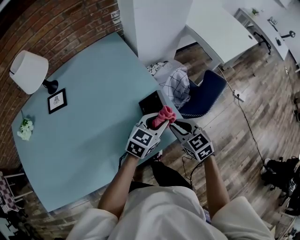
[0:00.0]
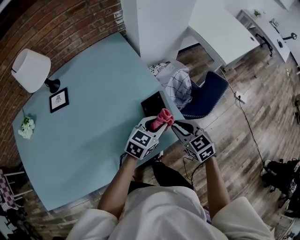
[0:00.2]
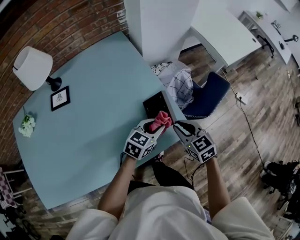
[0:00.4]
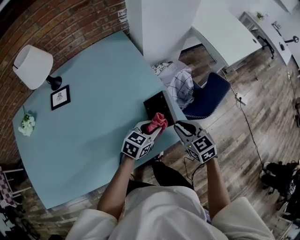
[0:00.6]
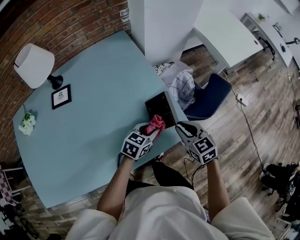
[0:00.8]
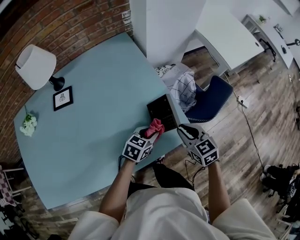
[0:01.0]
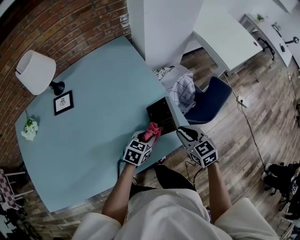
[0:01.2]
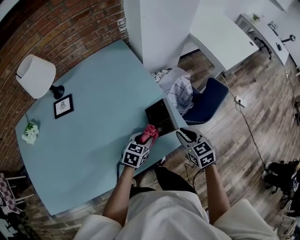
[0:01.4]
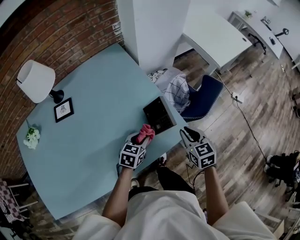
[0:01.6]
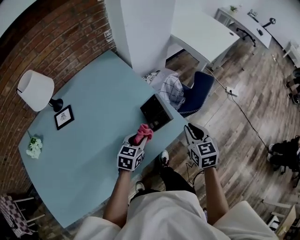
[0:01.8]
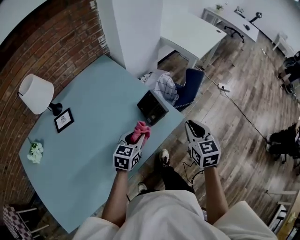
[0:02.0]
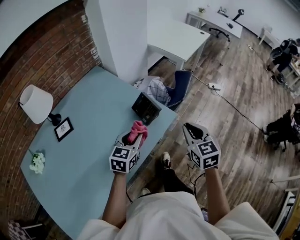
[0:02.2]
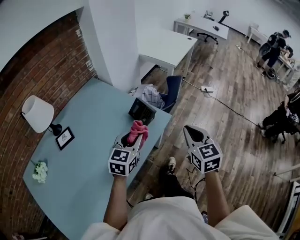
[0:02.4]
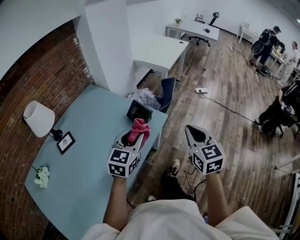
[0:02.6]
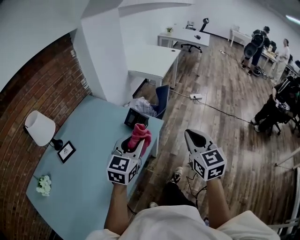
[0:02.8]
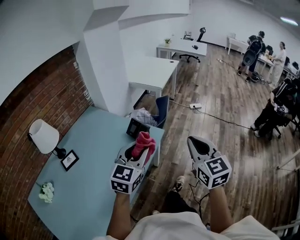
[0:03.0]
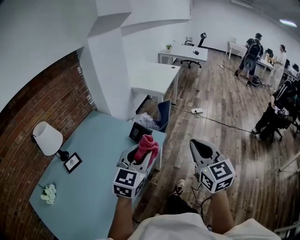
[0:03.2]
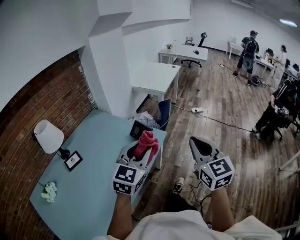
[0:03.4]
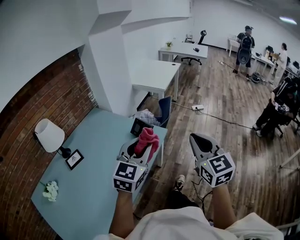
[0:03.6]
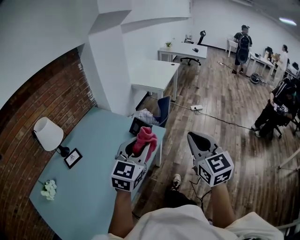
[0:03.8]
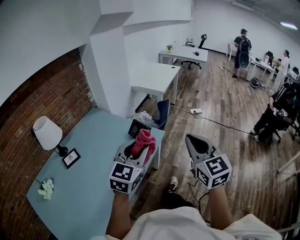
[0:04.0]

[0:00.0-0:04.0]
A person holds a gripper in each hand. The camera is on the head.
0:00.0 to 0:01.4: The left gripper travels to the left and downward by approximately 15 cm.
0:01.4 to 0:02.6: The left gripper travels upward by some 25 cm, and changes its angle by roughly 40 degrees, while the right gripper shifts by approximately 35 cm, turns by approximately 50 degrees, and closes.
0:02.6 to 0:04.0: Both grippers travel together upward and backward, approximately 15 cm.

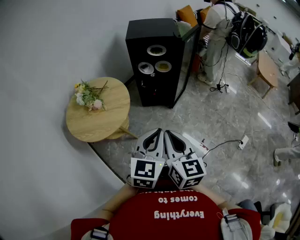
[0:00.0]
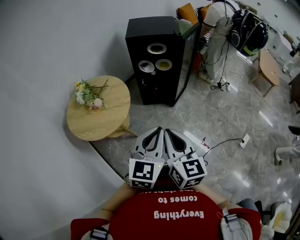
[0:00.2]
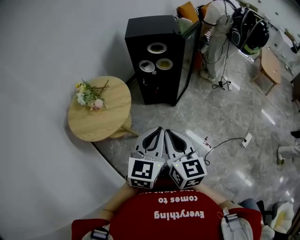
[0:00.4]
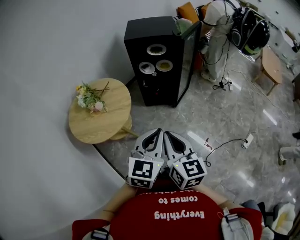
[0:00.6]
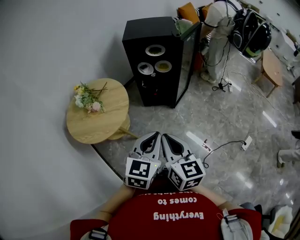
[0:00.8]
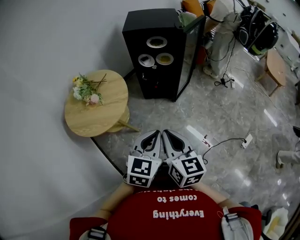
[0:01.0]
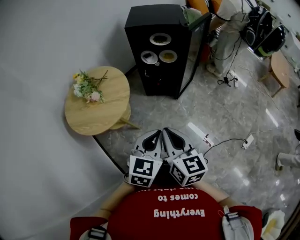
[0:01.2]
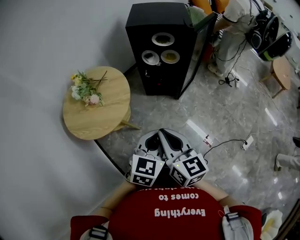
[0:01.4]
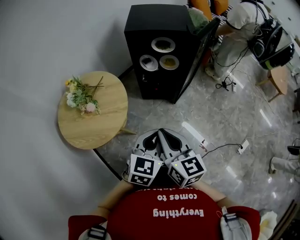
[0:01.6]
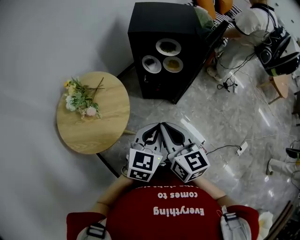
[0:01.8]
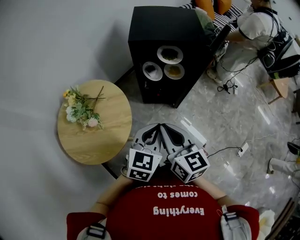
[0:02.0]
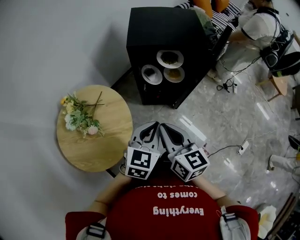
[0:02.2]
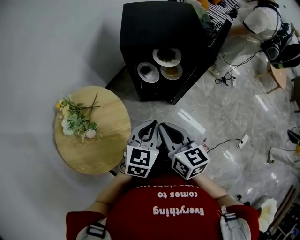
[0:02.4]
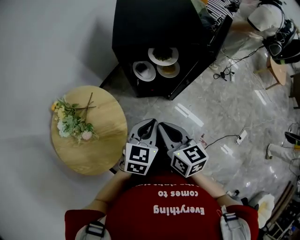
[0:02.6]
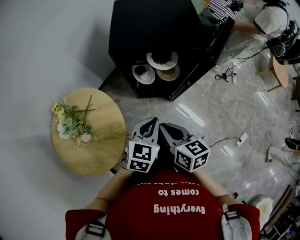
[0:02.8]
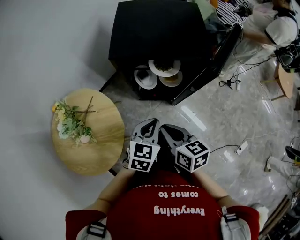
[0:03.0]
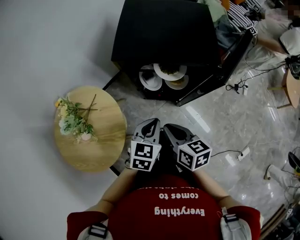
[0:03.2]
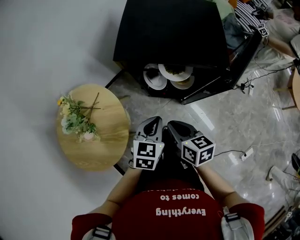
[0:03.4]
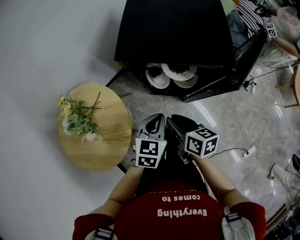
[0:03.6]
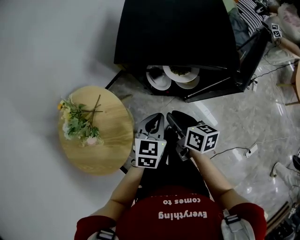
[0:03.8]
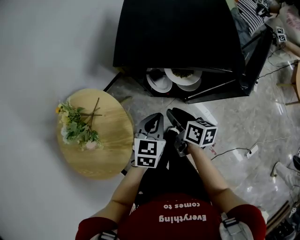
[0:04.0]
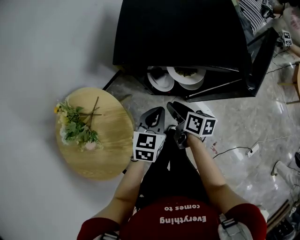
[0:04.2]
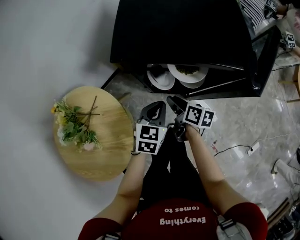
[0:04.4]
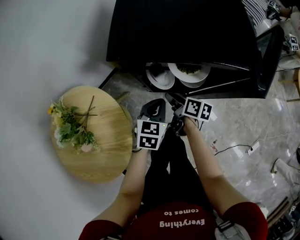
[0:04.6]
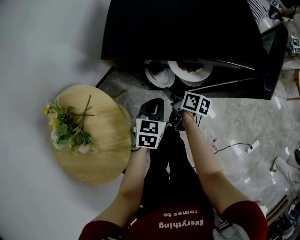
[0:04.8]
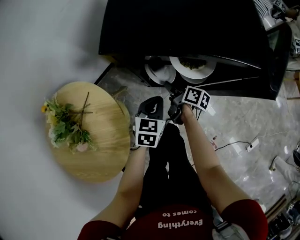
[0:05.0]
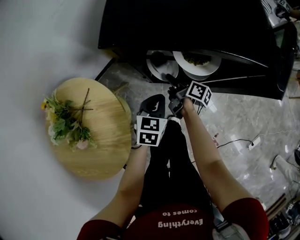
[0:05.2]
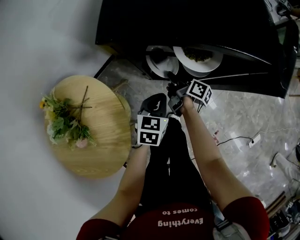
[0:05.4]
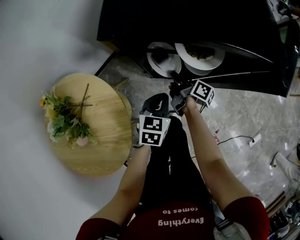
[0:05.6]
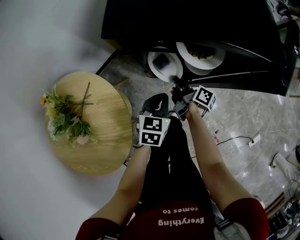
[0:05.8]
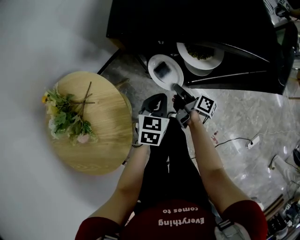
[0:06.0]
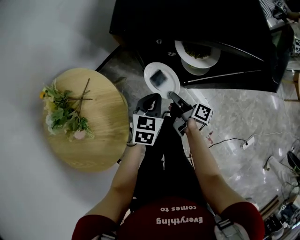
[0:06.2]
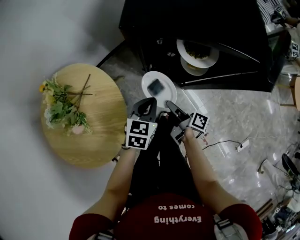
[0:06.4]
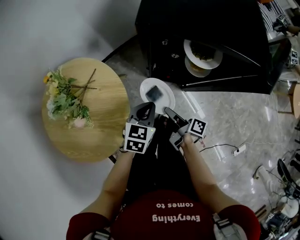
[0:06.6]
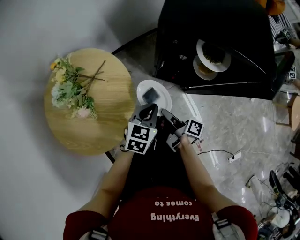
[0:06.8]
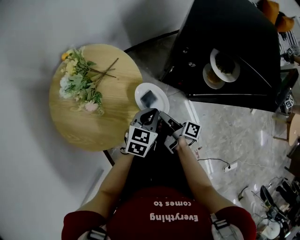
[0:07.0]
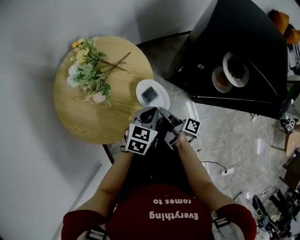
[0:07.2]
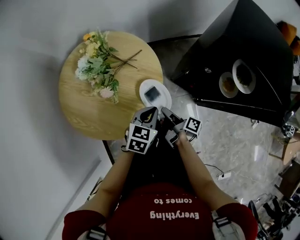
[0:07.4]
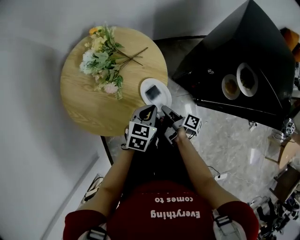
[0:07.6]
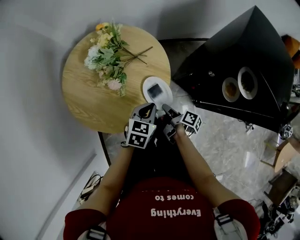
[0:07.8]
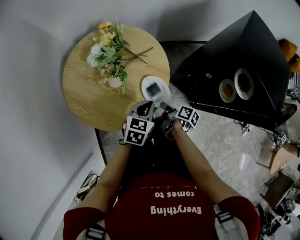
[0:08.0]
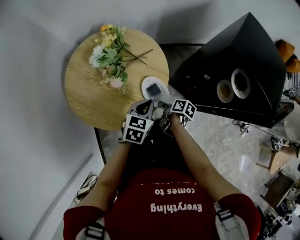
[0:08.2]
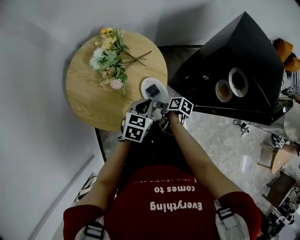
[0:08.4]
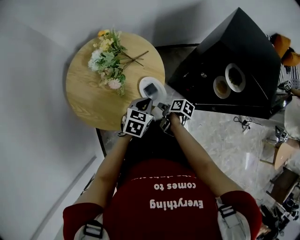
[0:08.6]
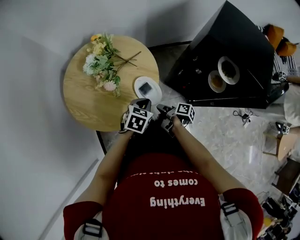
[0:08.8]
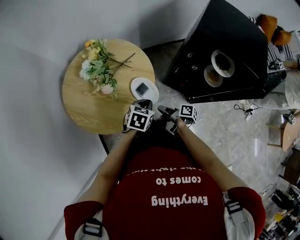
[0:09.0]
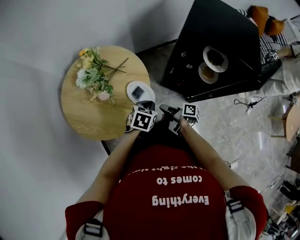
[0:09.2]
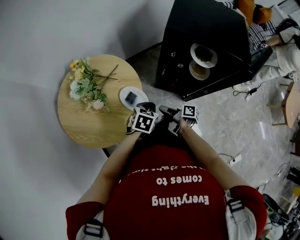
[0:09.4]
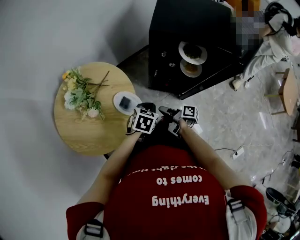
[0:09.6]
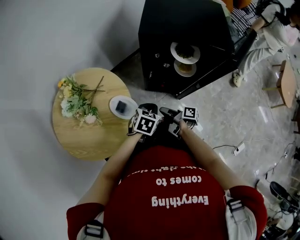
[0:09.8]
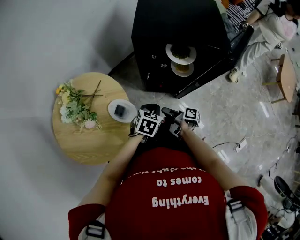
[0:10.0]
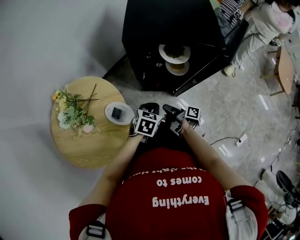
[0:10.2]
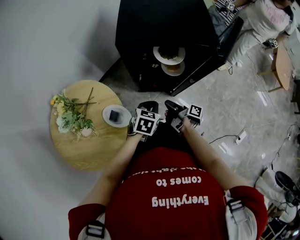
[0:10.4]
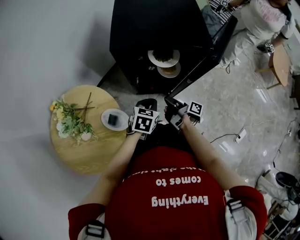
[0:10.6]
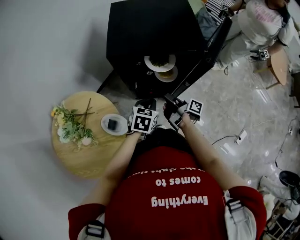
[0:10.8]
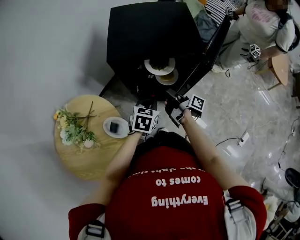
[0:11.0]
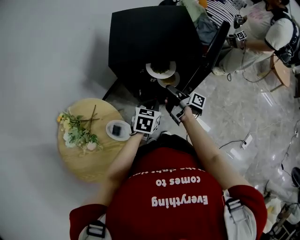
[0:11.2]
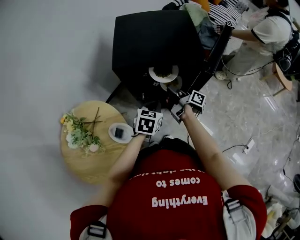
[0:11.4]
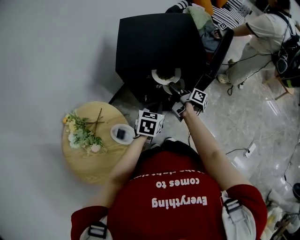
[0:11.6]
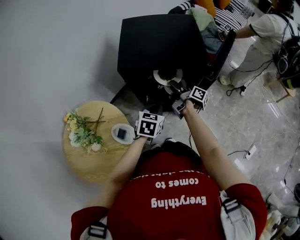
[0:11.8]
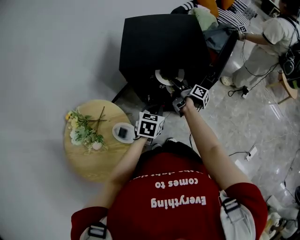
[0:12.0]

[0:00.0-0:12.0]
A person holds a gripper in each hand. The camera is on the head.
0:00.0 to 0:01.6: The left gripper moves approximately 15 cm.
0:01.6 to 0:03.0: The left gripper ends up about 30 cm from where it was.
0:03.0 to 0:04.4: The left gripper ends up about 15 cm from where it was.
0:04.4 to 0:06.0: The left gripper travels downward by roughly 10 cm.
0:06.0 to 0:07.6: The left gripper moves approximately 25 cm, and changes its angle by some 20 degrees.
0:09.0 to 0:10.4: The left gripper shifts by some 20 cm, and changes its angle by approximately 30 degrees.
0:10.4 to 0:12.0: The left gripper goes some 5 cm upward.

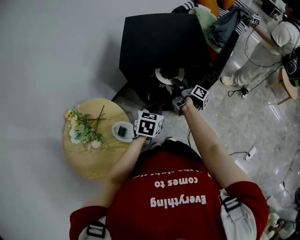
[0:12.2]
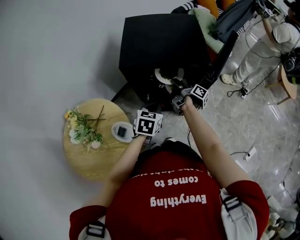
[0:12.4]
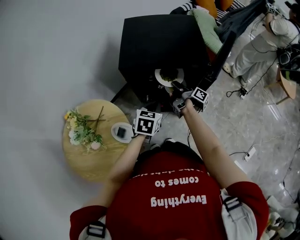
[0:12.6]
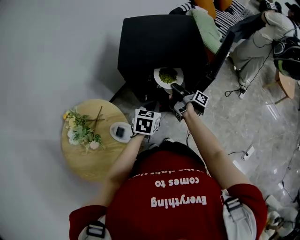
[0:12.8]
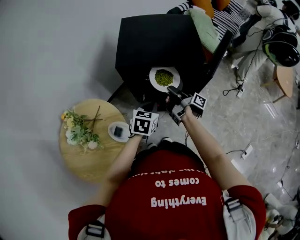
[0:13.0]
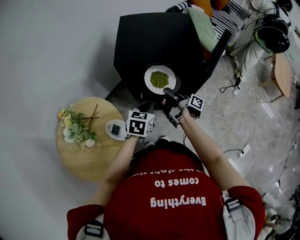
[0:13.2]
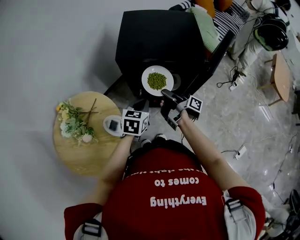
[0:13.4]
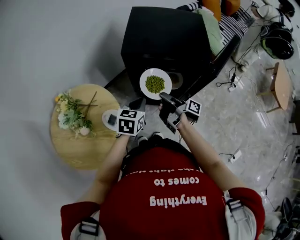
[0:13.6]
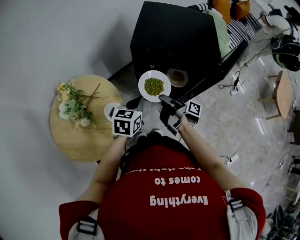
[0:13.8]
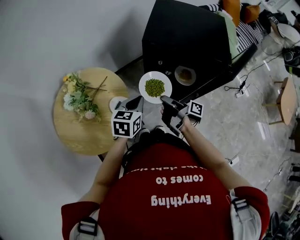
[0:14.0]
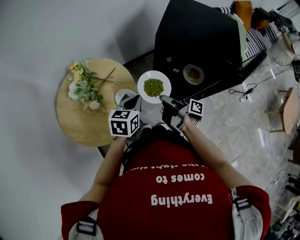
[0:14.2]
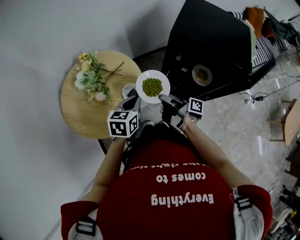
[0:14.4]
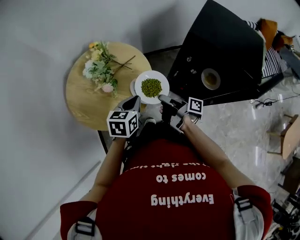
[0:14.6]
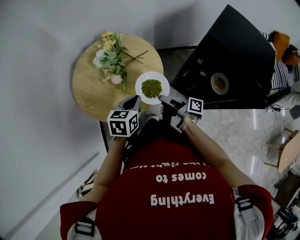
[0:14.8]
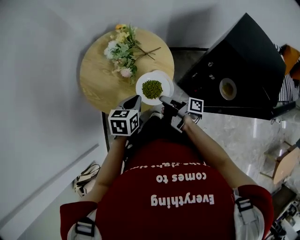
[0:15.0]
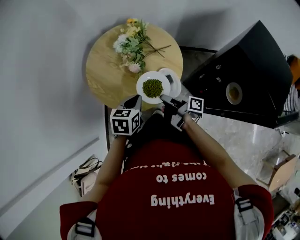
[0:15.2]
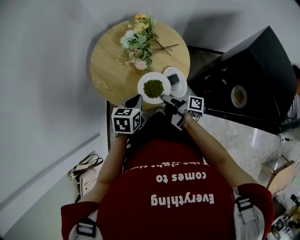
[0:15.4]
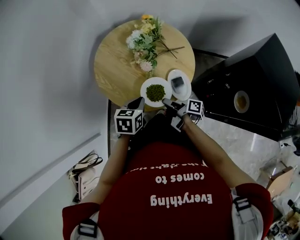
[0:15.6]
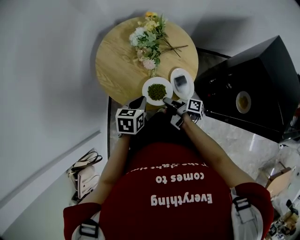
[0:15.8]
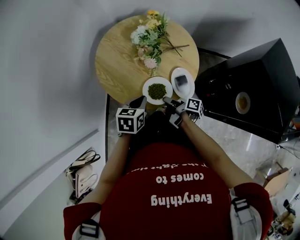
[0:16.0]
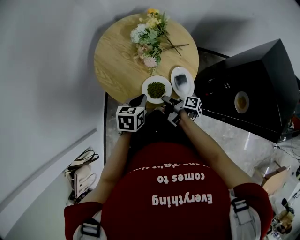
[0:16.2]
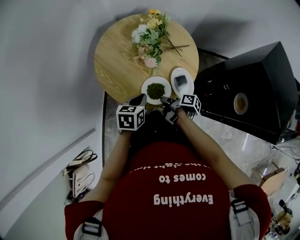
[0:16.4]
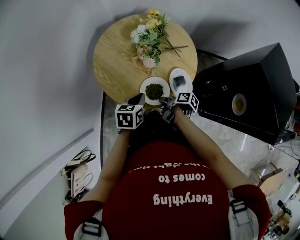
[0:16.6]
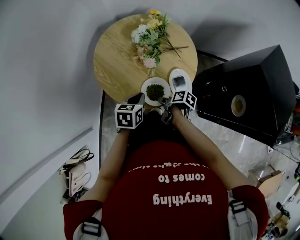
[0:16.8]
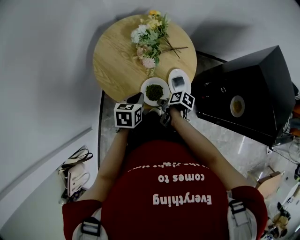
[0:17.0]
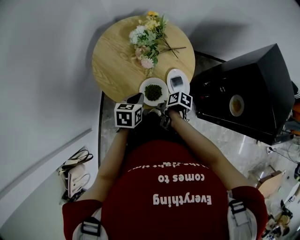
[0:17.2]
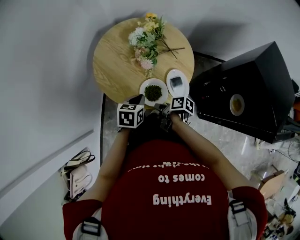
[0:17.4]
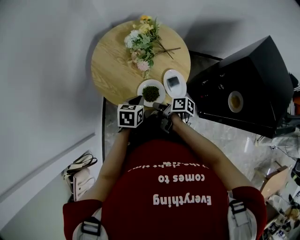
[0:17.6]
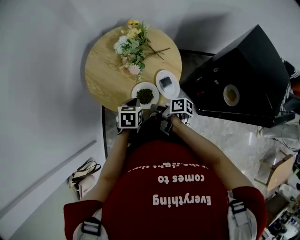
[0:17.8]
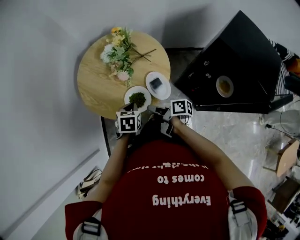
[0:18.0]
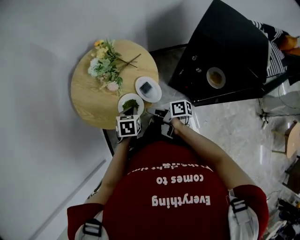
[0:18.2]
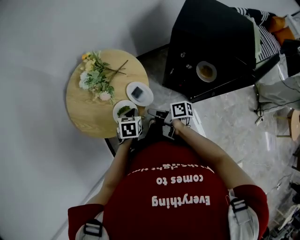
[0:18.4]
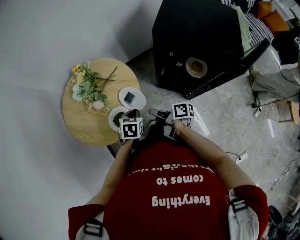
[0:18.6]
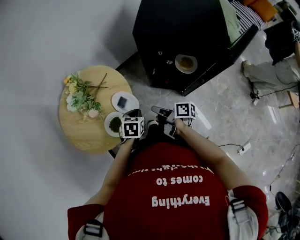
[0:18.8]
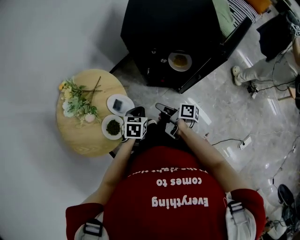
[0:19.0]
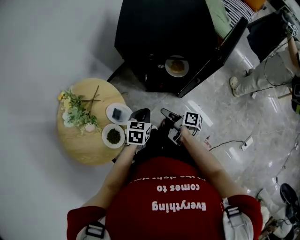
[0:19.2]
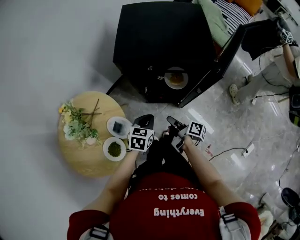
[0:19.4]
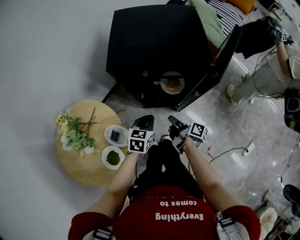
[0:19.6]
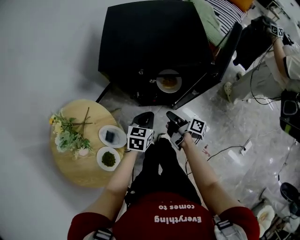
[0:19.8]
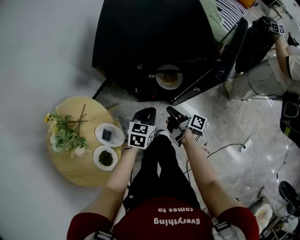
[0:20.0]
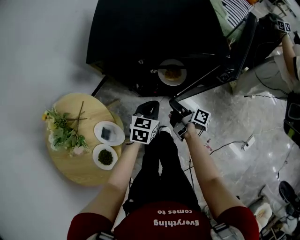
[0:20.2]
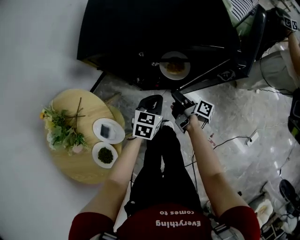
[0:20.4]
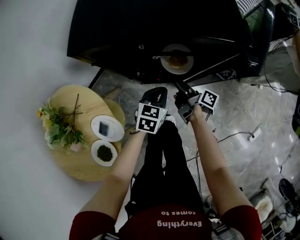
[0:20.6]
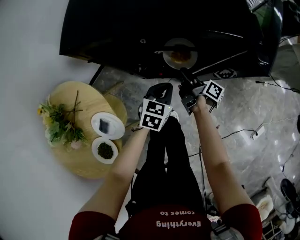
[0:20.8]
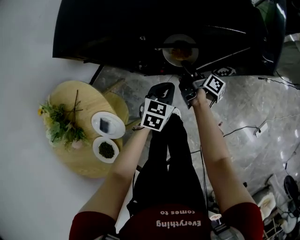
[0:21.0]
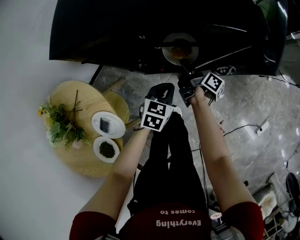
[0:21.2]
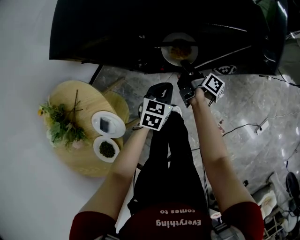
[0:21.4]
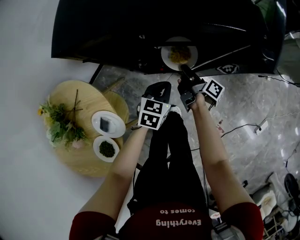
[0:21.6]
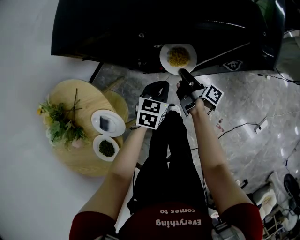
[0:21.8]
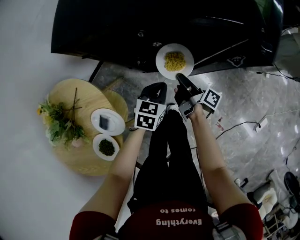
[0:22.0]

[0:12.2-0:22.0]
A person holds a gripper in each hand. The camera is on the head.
0:12.2 to 0:13.6: The left gripper ends up about 5 cm from where it was.
0:13.6 to 0:15.0: The left gripper shifts by some 30 cm, and changes its angle by approximately 40 degrees.
0:15.0 to 0:16.4: The left gripper ends up some 10 cm from where it was.
0:17.8 to 0:19.2: The left gripper moves roughly 30 cm, and twists about 40 degrees clockwise, seen from behind.
0:19.2 to 0:20.6: The left gripper shifts by about 20 cm.
